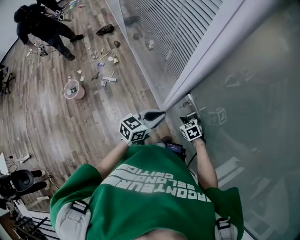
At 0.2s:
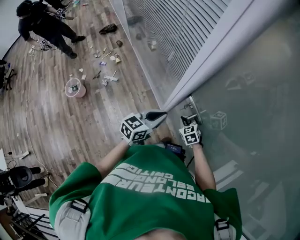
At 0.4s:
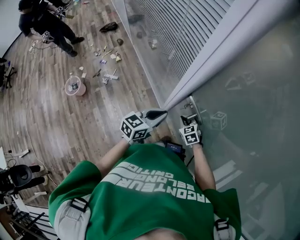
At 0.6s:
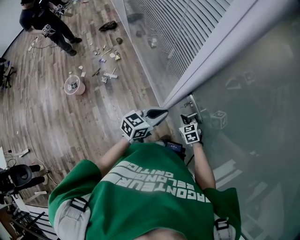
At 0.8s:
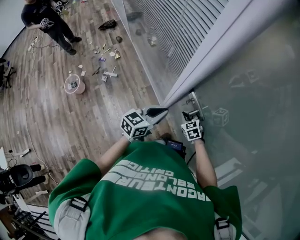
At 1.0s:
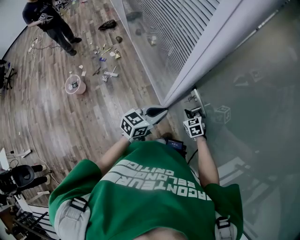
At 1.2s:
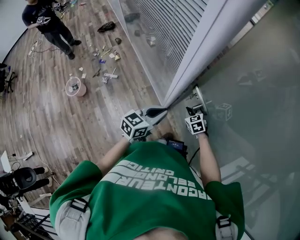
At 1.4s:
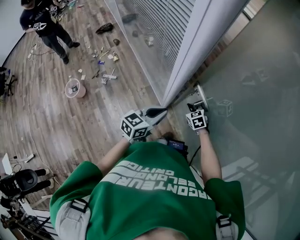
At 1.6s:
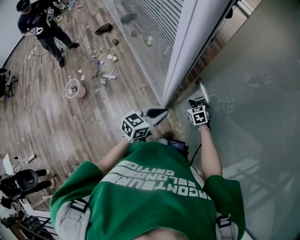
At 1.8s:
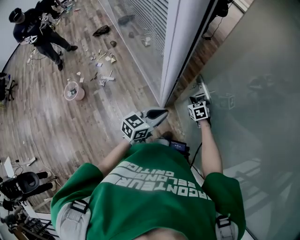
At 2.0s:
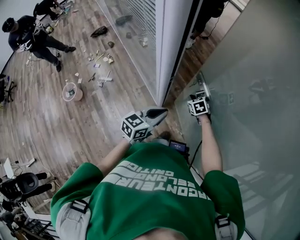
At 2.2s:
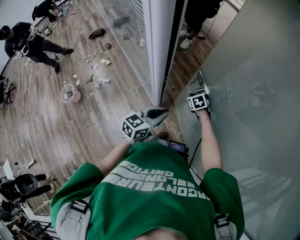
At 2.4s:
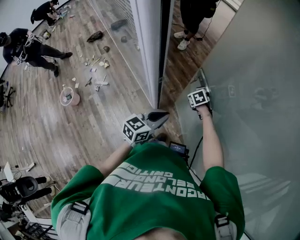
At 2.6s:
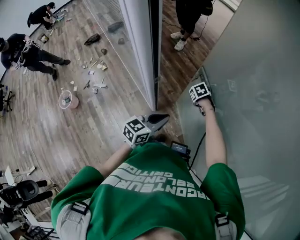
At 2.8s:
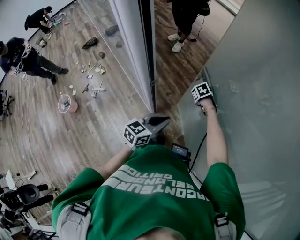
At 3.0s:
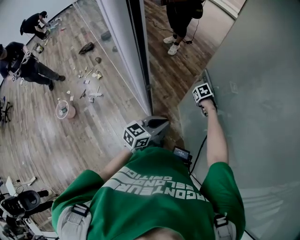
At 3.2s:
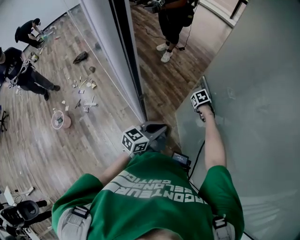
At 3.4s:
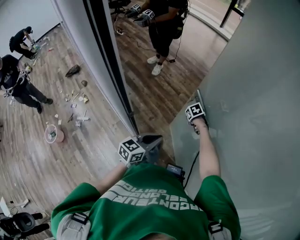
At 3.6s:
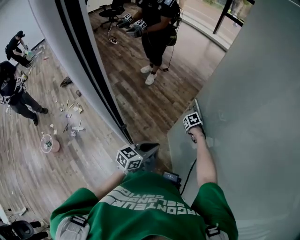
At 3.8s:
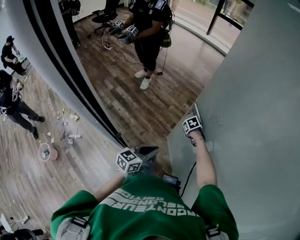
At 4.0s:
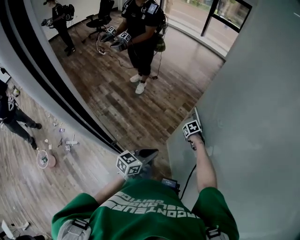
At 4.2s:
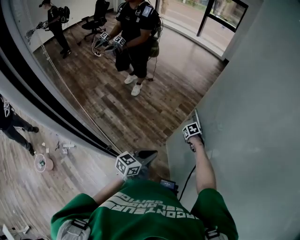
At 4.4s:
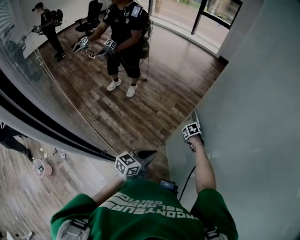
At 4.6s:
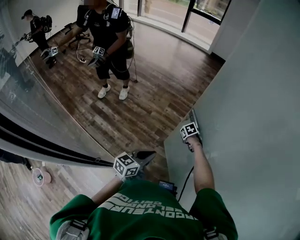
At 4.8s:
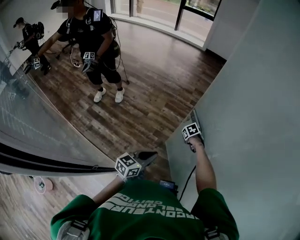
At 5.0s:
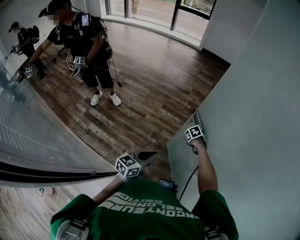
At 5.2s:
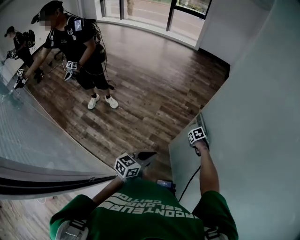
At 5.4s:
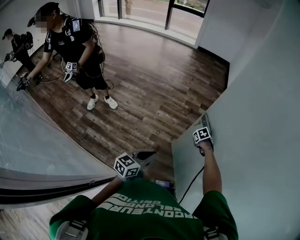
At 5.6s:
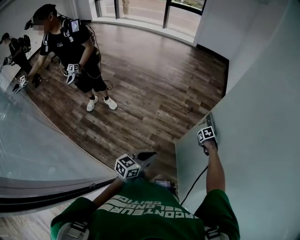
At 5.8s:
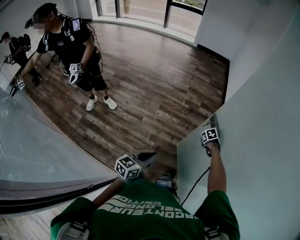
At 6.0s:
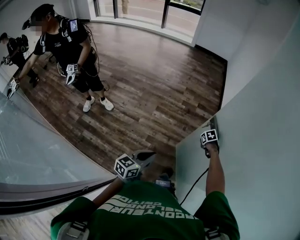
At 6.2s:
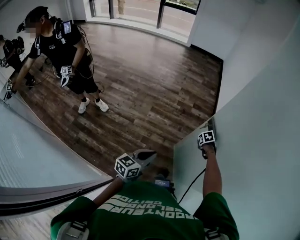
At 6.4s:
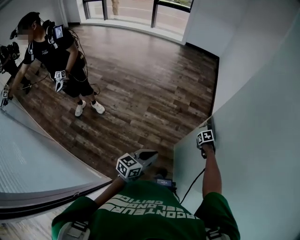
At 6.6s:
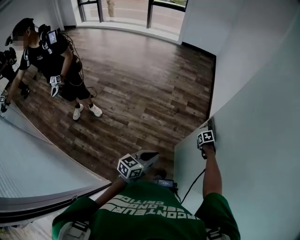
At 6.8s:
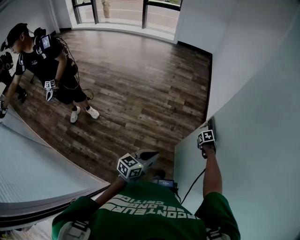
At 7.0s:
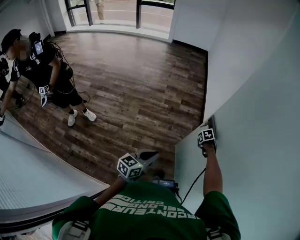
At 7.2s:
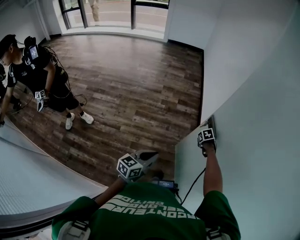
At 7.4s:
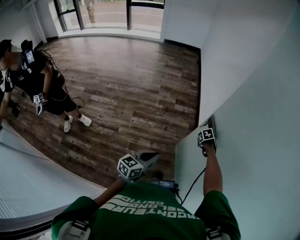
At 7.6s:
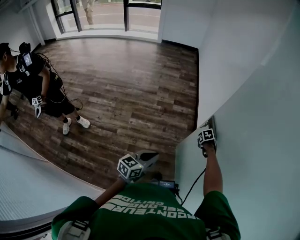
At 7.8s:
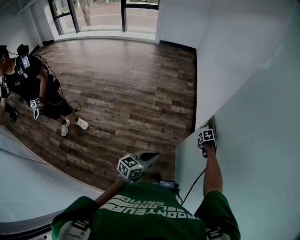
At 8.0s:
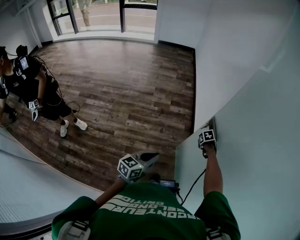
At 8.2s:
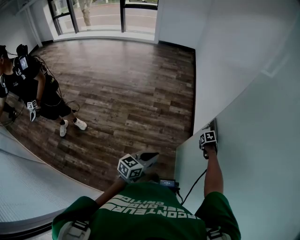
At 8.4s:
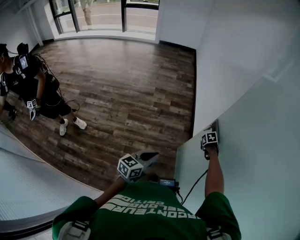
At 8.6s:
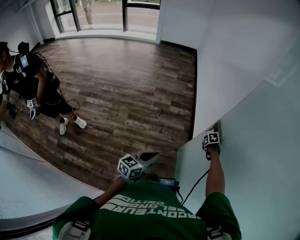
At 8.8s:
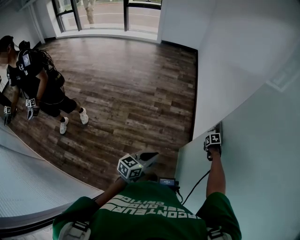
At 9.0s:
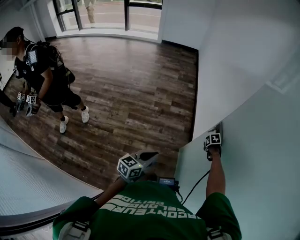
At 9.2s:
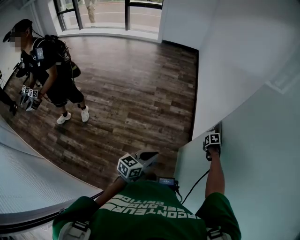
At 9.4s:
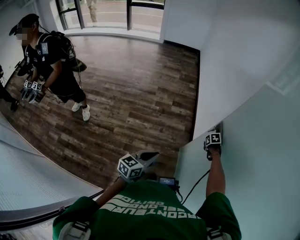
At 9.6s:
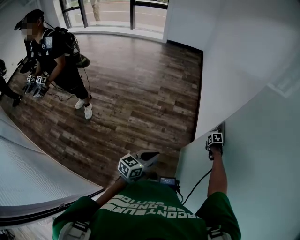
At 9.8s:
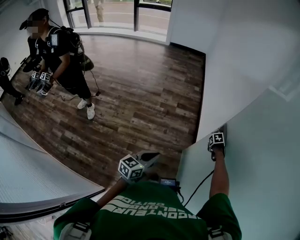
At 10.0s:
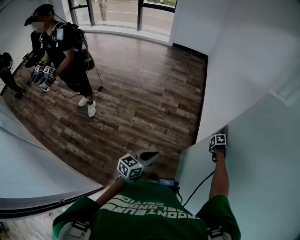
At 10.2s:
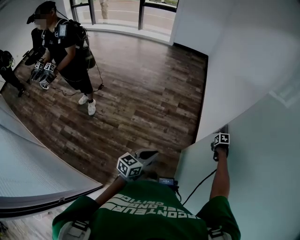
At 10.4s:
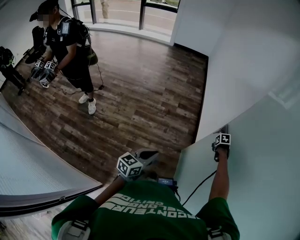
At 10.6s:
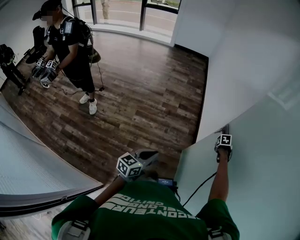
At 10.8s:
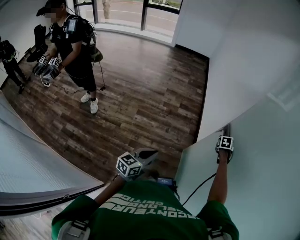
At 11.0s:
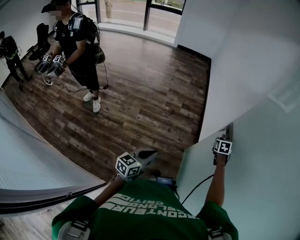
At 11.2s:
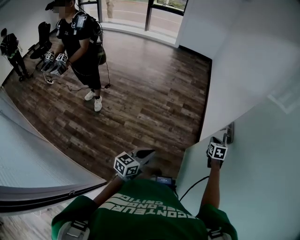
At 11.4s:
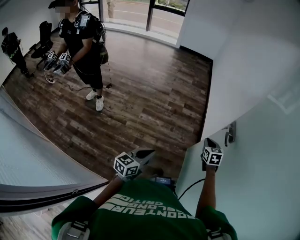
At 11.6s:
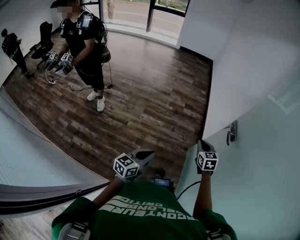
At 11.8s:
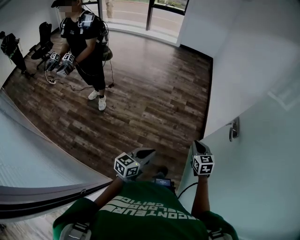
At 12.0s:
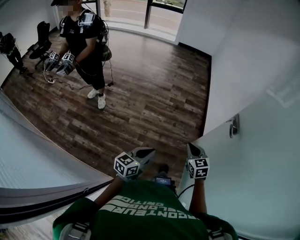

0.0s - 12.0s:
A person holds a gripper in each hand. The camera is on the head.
0.0s - 1.6s: The right gripper moves forward and to the right, about 10 cm.
1.6s - 3.0s: The right gripper shifts by approximately 20 cm, and rotates about 30 degrees. The left gripper changes place by approximately 15 cm.
3.0s - 4.4s: The left gripper ends up some 20 cm from where it was; the right gripper moves some 25 cm.
4.4s - 6.0s: The left gripper ends up about 20 cm from where it was; the right gripper shifts by roughly 30 cm, and rotates roughly 20 degrees.
6.0s - 7.6s: The left gripper changes place by approximately 20 cm. The right gripper shifts by approximately 20 cm.
7.6s - 9.0s: The right gripper shifts by about 10 cm.
9.0s - 10.4s: The left gripper moves some 5 cm, while the right gripper changes place by some 5 cm, and opens its fingers.
10.4s - 12.0s: The left gripper ends up about 20 cm from where it was. The right gripper ends up approximately 50 cm from where it was, tips its fingers upward by about 40 degrees, and closes up.

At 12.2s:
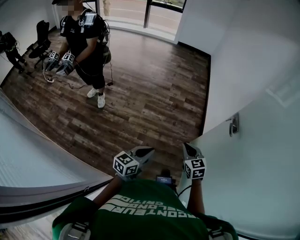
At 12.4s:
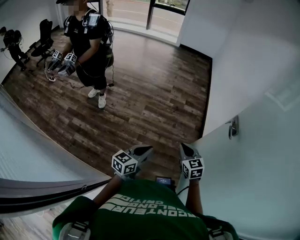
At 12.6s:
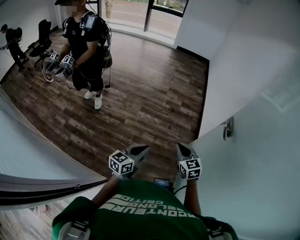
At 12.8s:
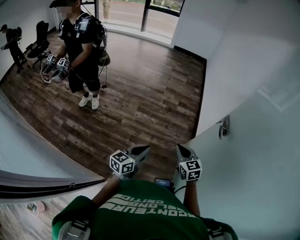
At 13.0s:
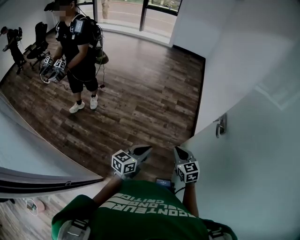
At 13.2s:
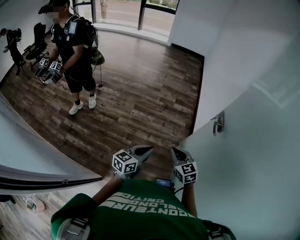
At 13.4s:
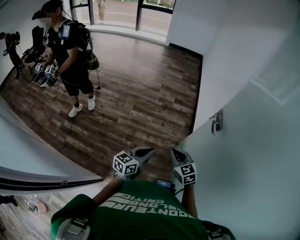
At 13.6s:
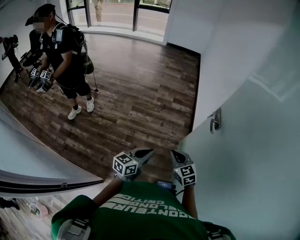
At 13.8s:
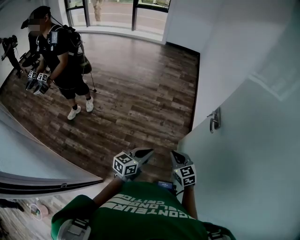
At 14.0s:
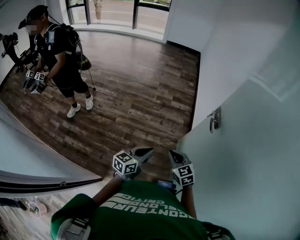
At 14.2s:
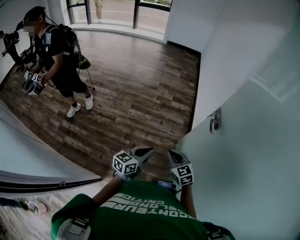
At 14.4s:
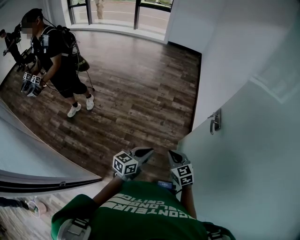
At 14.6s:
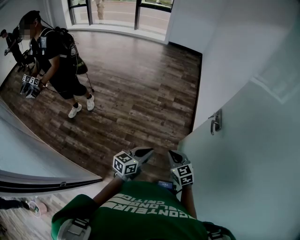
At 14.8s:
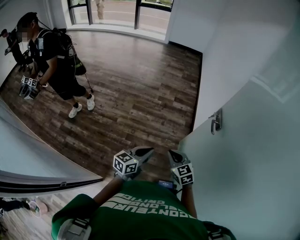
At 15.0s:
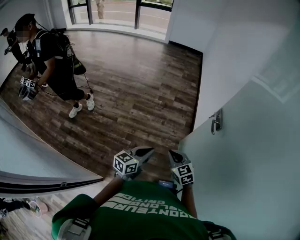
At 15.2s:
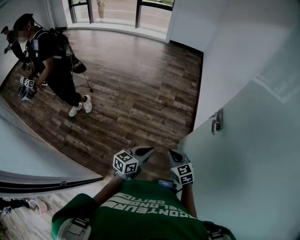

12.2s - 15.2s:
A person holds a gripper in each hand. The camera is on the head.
12.2s - 13.8s: The grippers both shift to the right by about 10 cm.
13.8s - 15.2s: The right gripper moves forward and downward, roughly 10 cm, while the left gripper goes roughly 15 cm forward, to the right and downward.

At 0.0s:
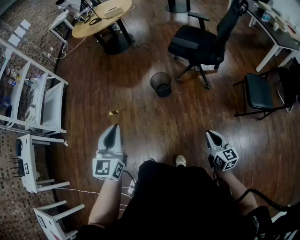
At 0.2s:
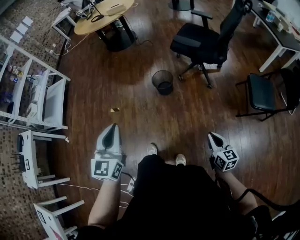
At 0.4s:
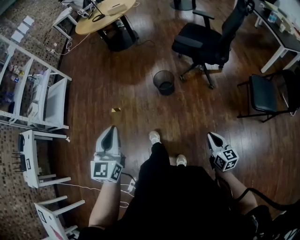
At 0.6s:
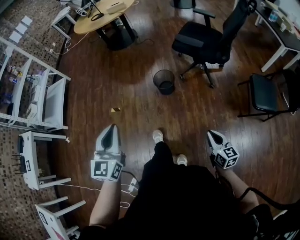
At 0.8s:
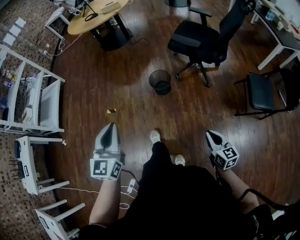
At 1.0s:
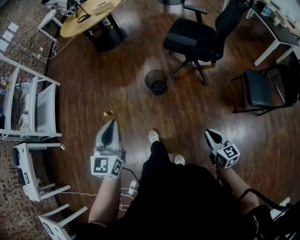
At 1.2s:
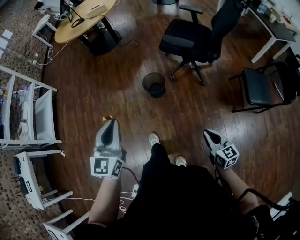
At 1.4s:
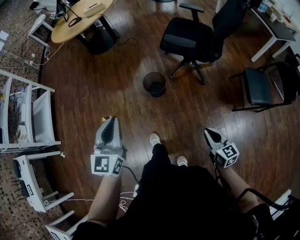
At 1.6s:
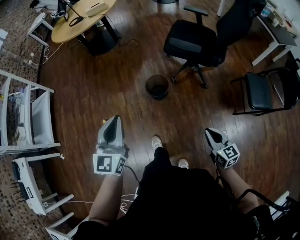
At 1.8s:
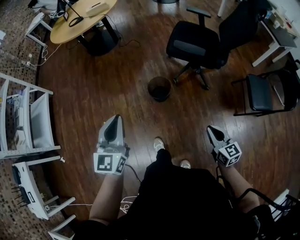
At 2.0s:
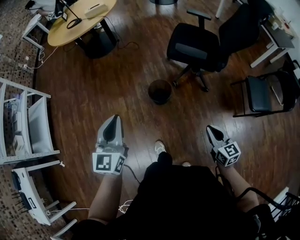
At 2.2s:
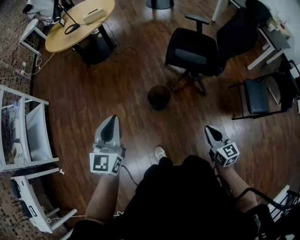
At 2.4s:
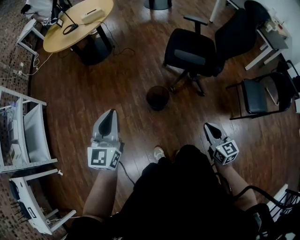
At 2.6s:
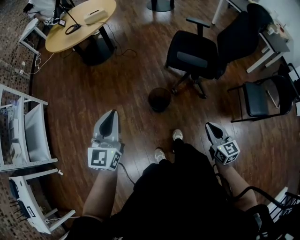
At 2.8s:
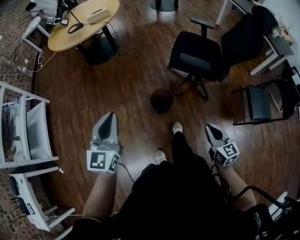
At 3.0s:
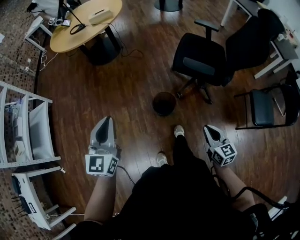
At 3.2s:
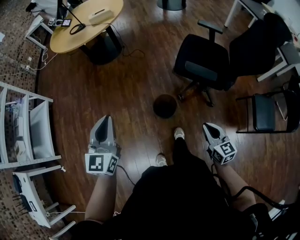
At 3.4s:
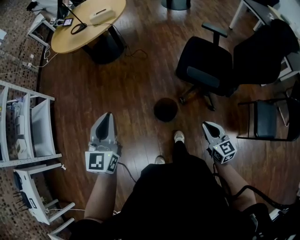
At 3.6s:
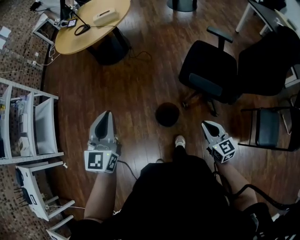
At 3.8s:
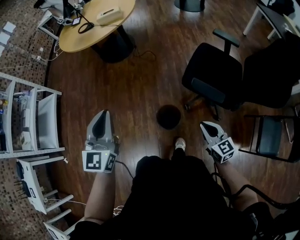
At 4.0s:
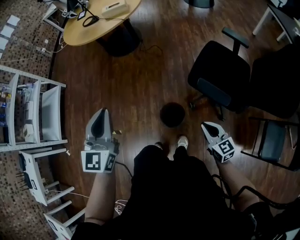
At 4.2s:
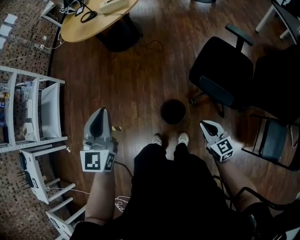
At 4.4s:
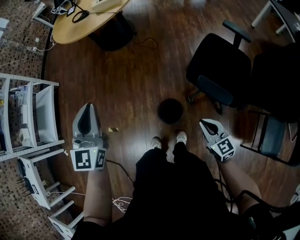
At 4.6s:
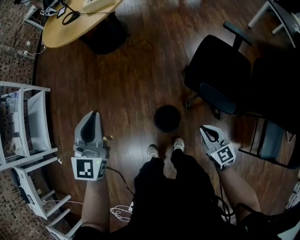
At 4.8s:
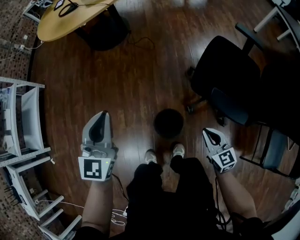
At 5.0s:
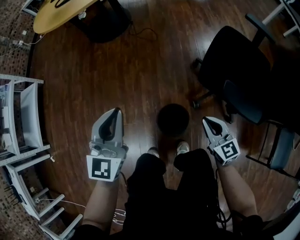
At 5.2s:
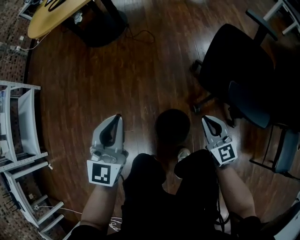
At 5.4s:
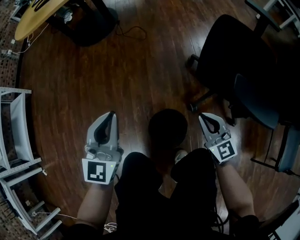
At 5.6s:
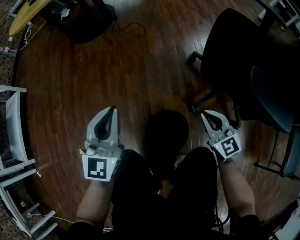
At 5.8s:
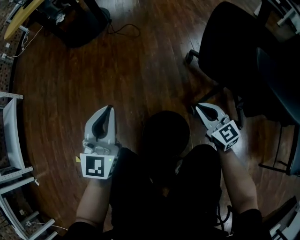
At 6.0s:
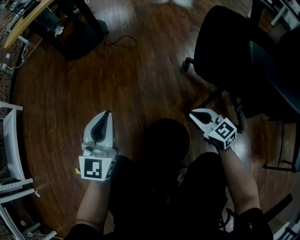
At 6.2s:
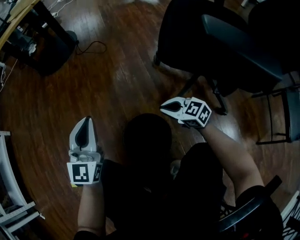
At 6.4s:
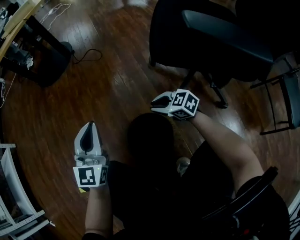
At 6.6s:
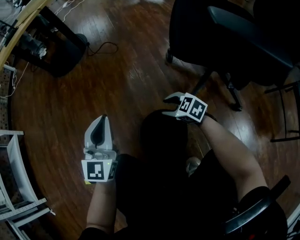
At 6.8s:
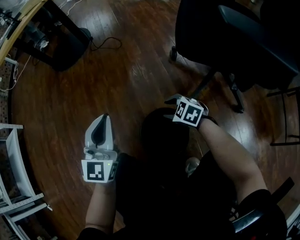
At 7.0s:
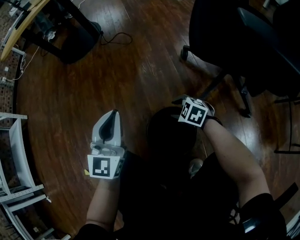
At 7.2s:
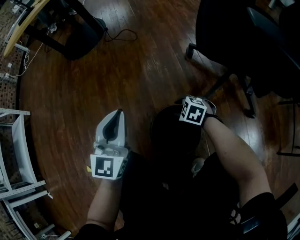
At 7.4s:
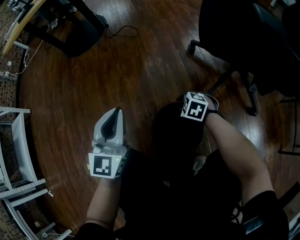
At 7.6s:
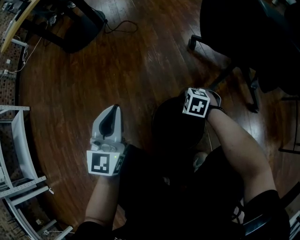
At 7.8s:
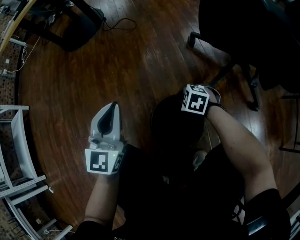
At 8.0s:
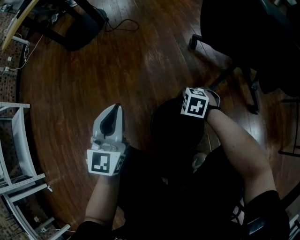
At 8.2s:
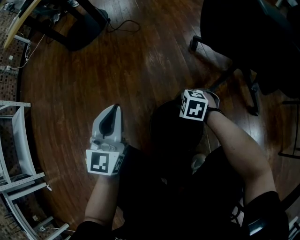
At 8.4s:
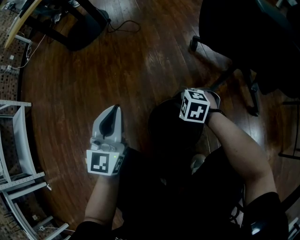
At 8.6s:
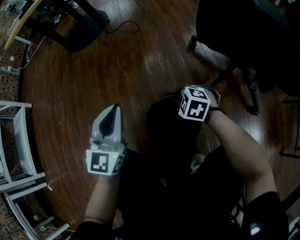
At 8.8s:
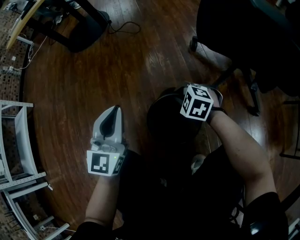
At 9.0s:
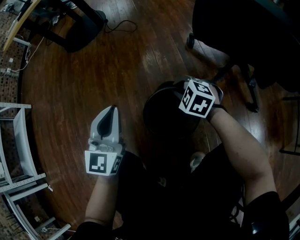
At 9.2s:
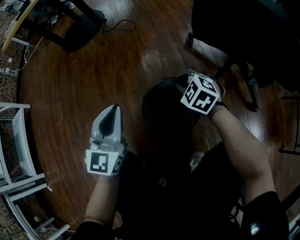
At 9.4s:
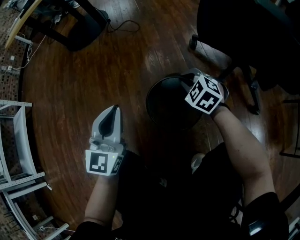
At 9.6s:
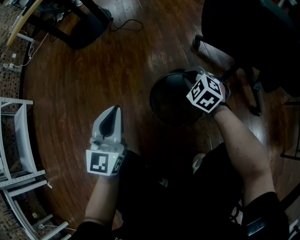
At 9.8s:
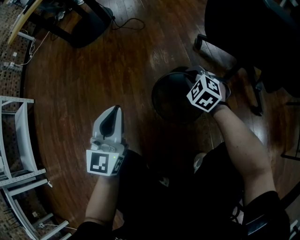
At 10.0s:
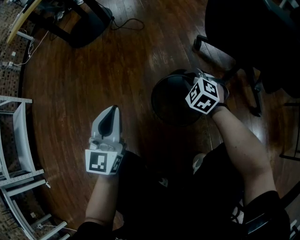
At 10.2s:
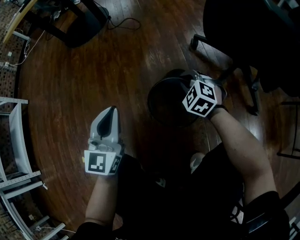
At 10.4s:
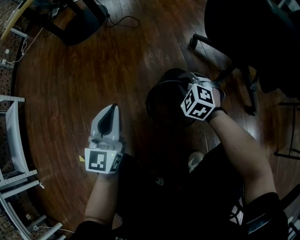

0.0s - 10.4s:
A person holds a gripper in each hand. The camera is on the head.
0.0s - 1.4s: The left gripper moves forward, roughly 15 cm. The right gripper shifts about 10 cm forward.
1.4s - 3.0s: The right gripper travels forward by approximately 20 cm. The left gripper moves forward and to the left, roughly 20 cm.
3.0s - 4.4s: The grippers both shift forward by roughly 20 cm. The right gripper turns by approximately 20 degrees.
4.4s - 6.0s: Both grippers travel together downward, approximately 40 cm.
6.0s - 7.4s: The right gripper moves downward and to the left, roughly 15 cm, points its fingers approximately 40 degrees further downward, and opens its fingers.
7.4s - 9.0s: The right gripper moves upward, some 10 cm.
